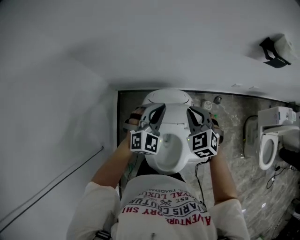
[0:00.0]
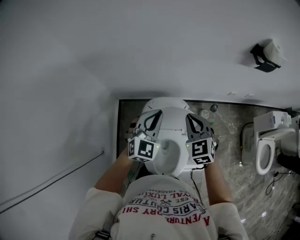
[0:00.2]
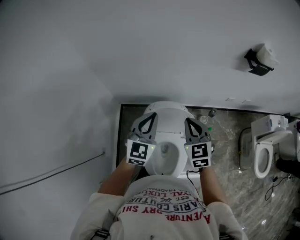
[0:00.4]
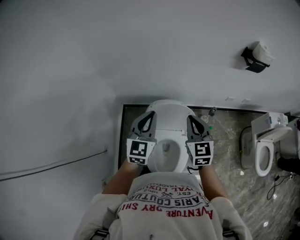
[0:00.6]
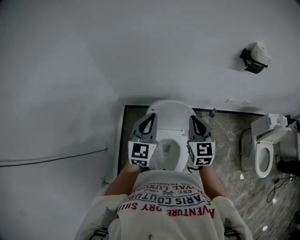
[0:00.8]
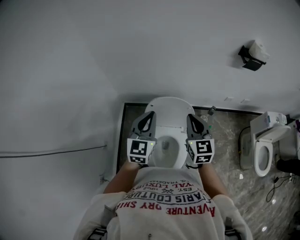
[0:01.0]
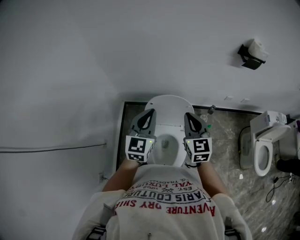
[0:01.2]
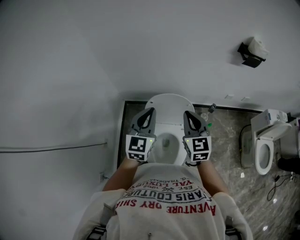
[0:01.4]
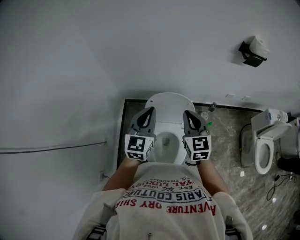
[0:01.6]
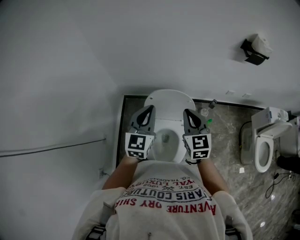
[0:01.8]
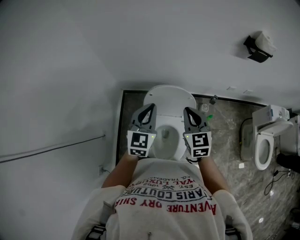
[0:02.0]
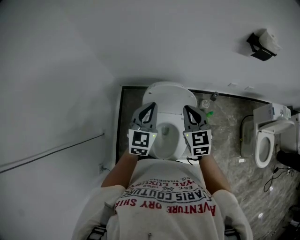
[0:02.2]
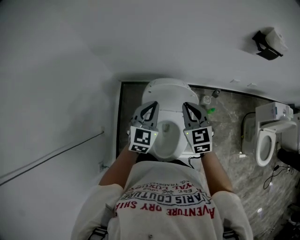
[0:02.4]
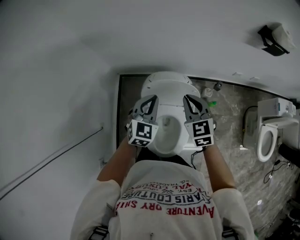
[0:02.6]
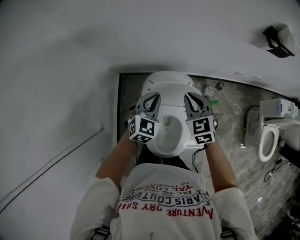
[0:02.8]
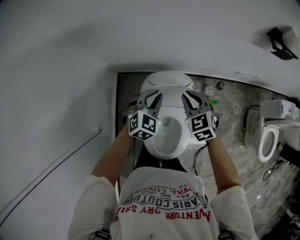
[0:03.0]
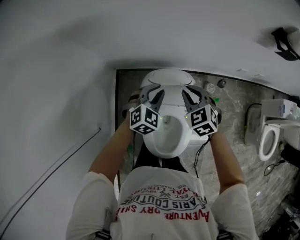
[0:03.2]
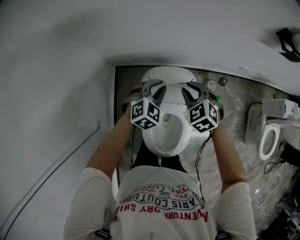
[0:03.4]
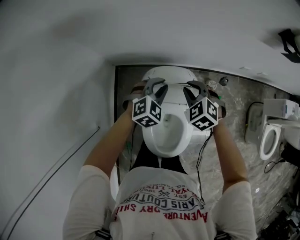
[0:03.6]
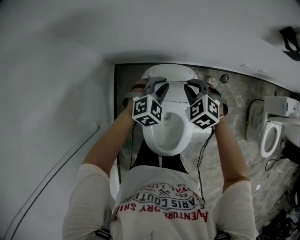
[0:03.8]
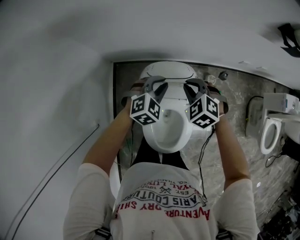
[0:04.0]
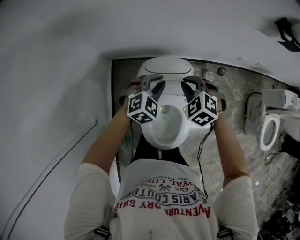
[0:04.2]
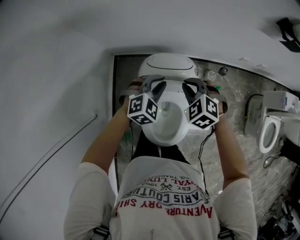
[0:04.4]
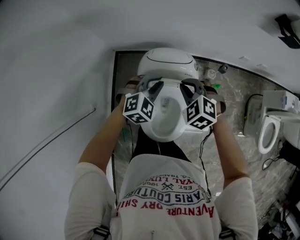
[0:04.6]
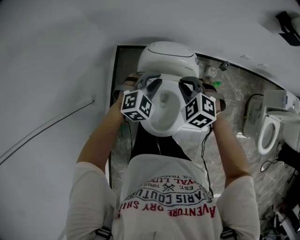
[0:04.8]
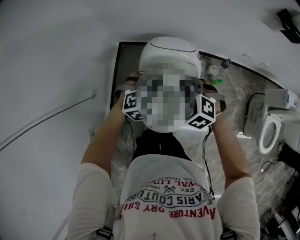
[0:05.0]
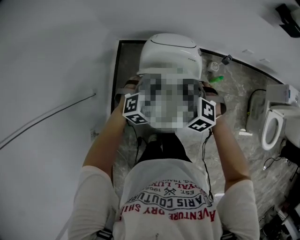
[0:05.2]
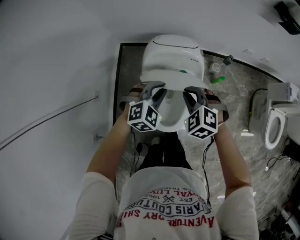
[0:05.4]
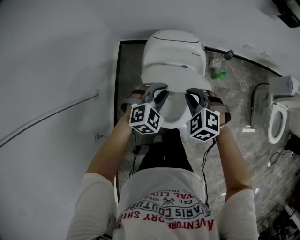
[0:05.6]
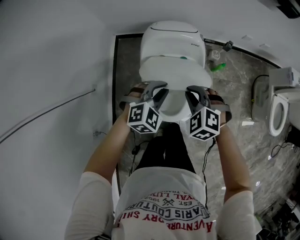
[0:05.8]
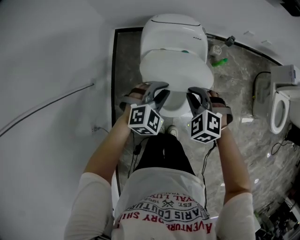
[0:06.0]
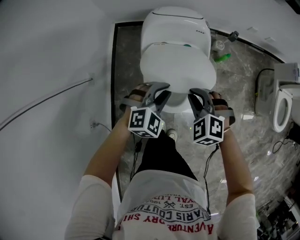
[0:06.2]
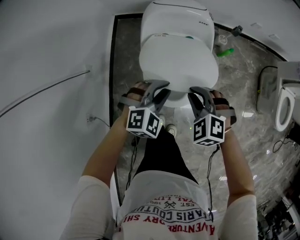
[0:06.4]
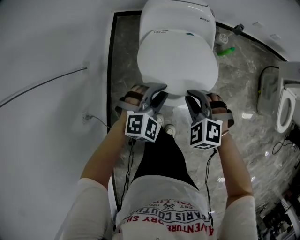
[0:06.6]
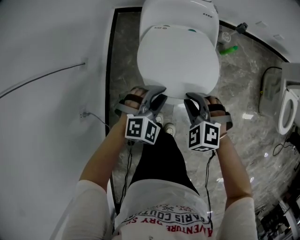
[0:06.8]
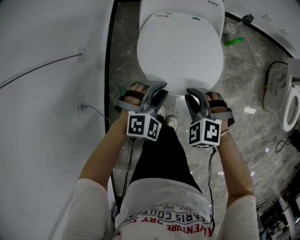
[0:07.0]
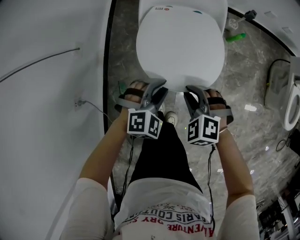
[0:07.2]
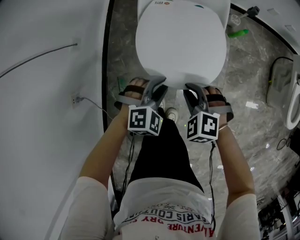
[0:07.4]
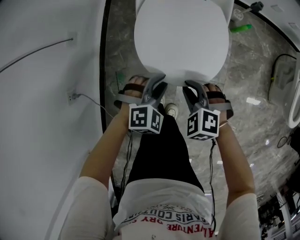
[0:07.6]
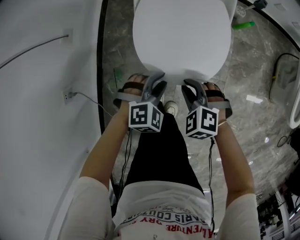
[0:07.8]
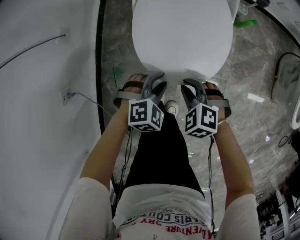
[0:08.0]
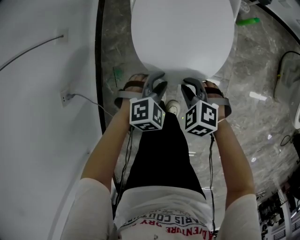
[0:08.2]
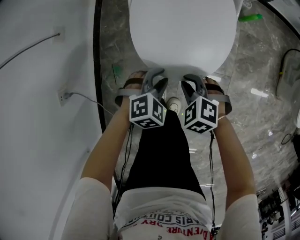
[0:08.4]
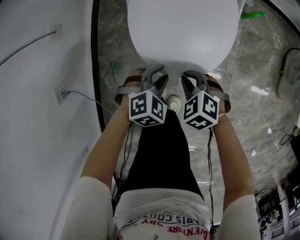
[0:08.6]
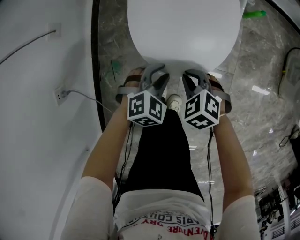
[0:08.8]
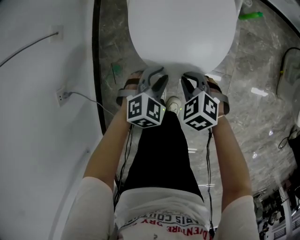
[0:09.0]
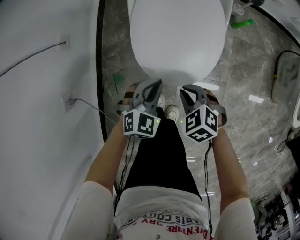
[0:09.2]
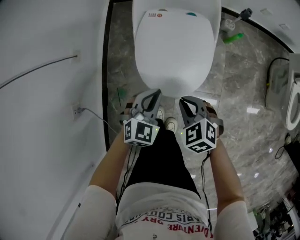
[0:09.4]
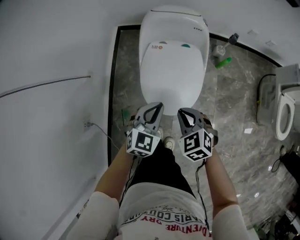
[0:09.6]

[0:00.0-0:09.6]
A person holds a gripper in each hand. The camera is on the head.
0:00.0 to 0:01.6: Both grippers travel together backward and upward, approximately 20 cm. The right gripper rotates about 30 degrees, while the left gripper swivels about 40 degrees.
0:01.6 to 0:03.2: The right gripper travels forward and downward by about 25 cm, and turns by some 40 degrees. Meanwhile the left gripper travels downward and forward by roughly 30 cm, and tilts its fingers approximately 30 degrees downward.
0:03.2 to 0:04.8: The grippers both shift backward by some 10 cm. The right gripper rotates about 20 degrees.
0:04.8 to 0:06.4: The two grippers go roughly 25 cm backward and downward.
0:06.4 to 0:08.0: Both grippers travel together downward and backward, roughly 25 cm.
0:08.0 to 0:09.6: Both grippers travel together upward, approximately 20 cm. The right gripper swivels approximately 30 degrees, while the left gripper swivels some 40 degrees, and closes up.

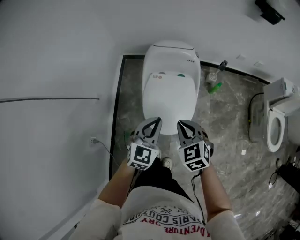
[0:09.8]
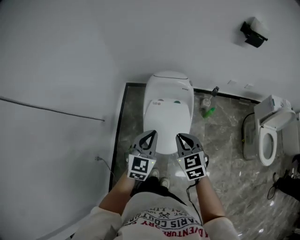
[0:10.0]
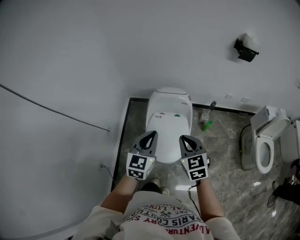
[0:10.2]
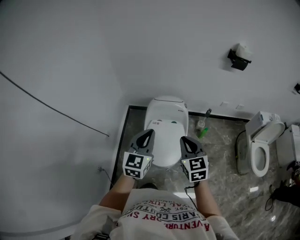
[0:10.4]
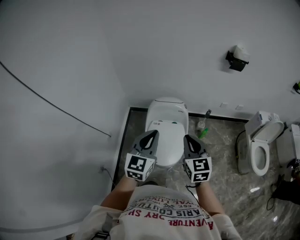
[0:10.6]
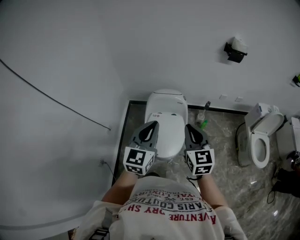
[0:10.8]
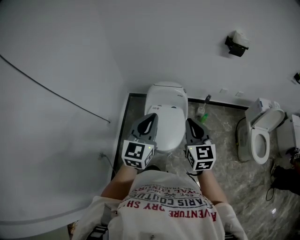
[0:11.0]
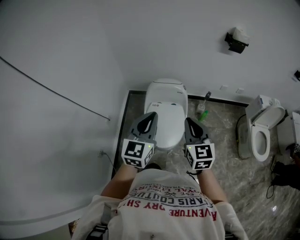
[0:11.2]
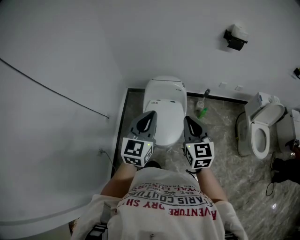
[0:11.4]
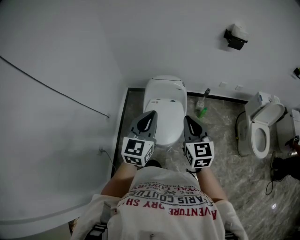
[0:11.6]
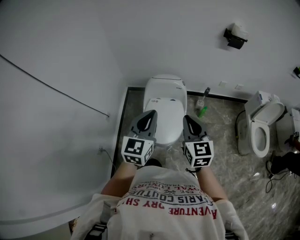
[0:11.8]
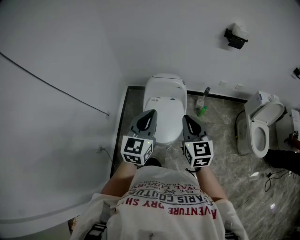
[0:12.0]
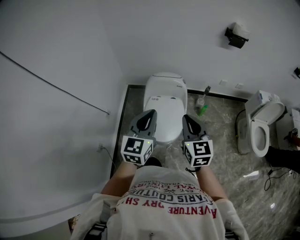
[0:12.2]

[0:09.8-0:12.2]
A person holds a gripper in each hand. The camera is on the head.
0:09.8 to 0:11.0: The grippers both shift upward by about 30 cm. The right gripper changes its angle by approximately 40 degrees. Meanwhile the left gripper swivels roughly 20 degrees.
0:11.0 to 0:12.2: The grippers stay close to where they were, moving slightly.

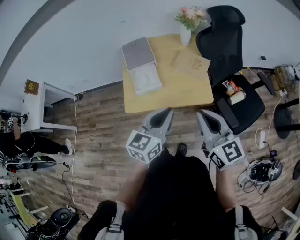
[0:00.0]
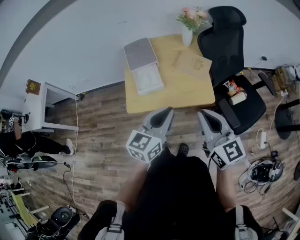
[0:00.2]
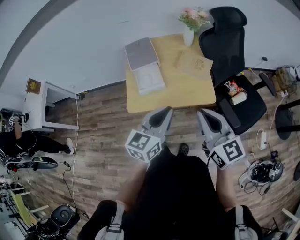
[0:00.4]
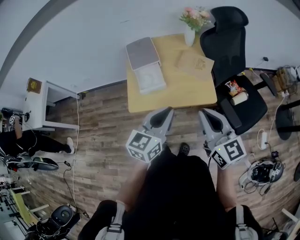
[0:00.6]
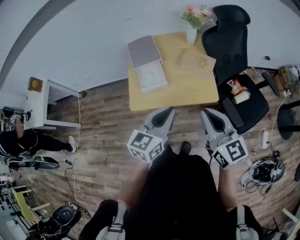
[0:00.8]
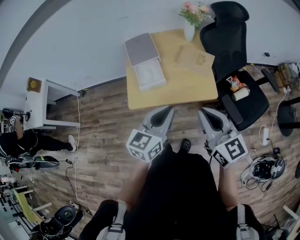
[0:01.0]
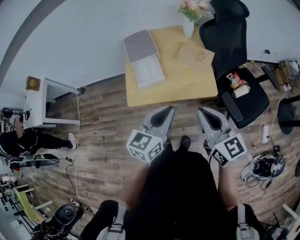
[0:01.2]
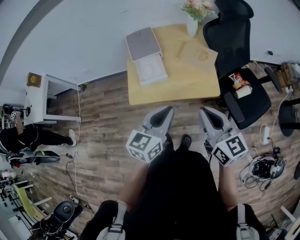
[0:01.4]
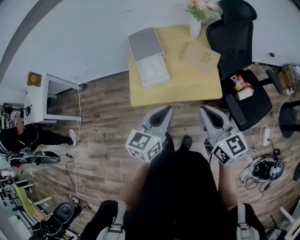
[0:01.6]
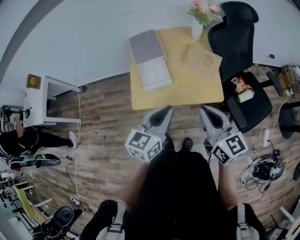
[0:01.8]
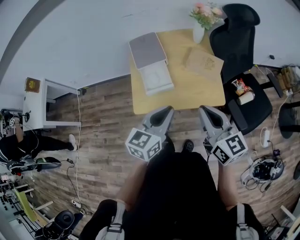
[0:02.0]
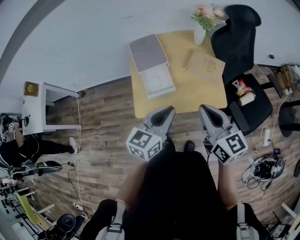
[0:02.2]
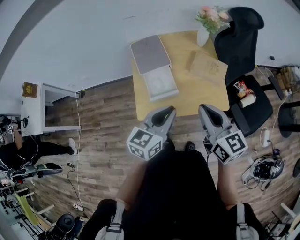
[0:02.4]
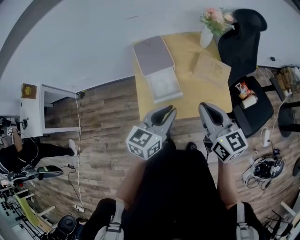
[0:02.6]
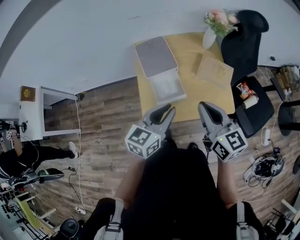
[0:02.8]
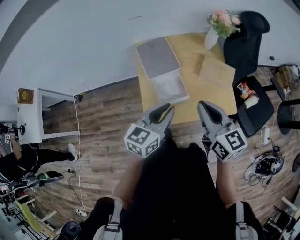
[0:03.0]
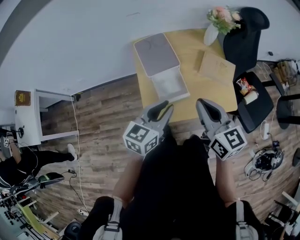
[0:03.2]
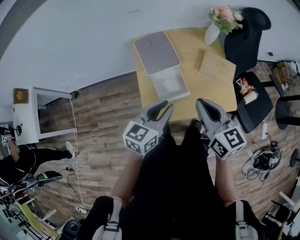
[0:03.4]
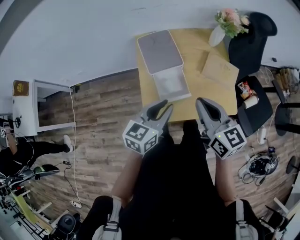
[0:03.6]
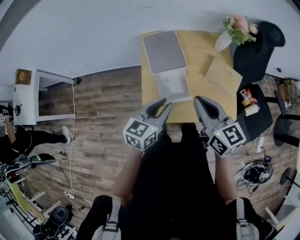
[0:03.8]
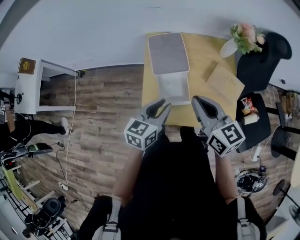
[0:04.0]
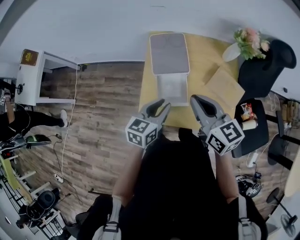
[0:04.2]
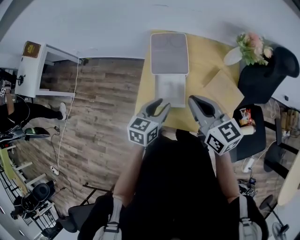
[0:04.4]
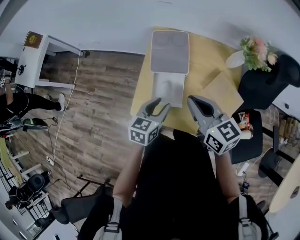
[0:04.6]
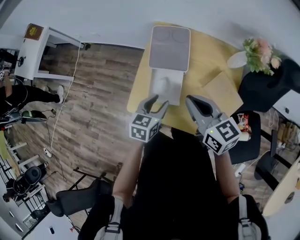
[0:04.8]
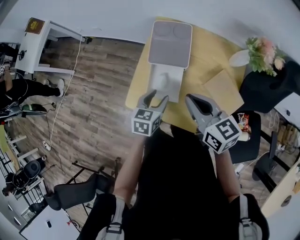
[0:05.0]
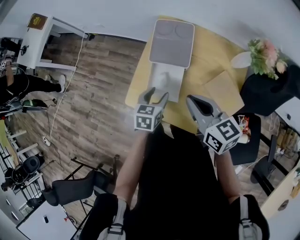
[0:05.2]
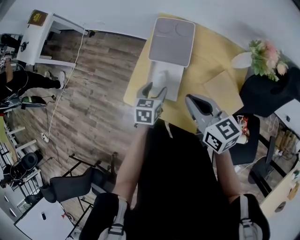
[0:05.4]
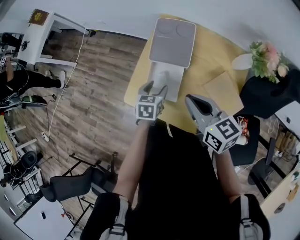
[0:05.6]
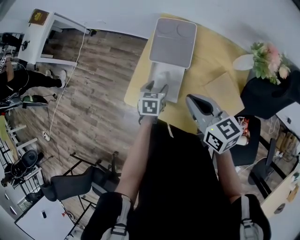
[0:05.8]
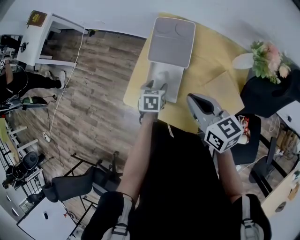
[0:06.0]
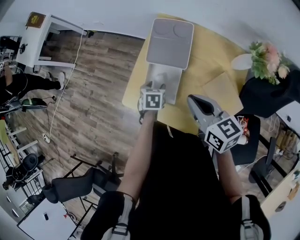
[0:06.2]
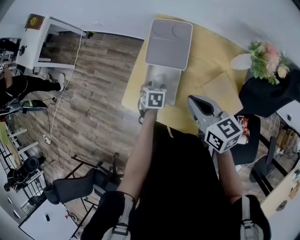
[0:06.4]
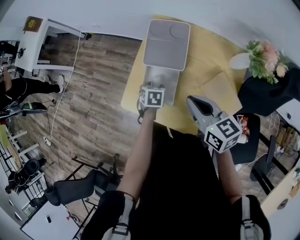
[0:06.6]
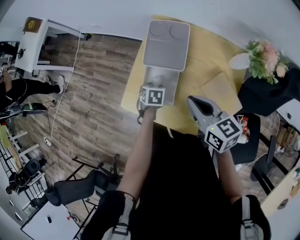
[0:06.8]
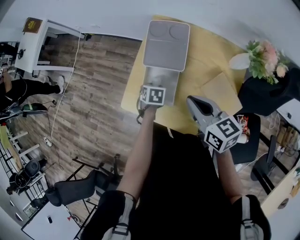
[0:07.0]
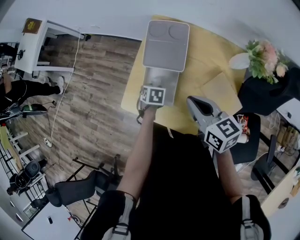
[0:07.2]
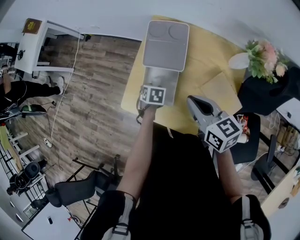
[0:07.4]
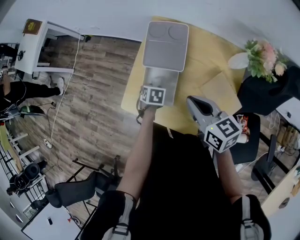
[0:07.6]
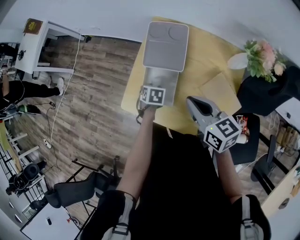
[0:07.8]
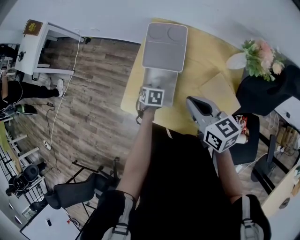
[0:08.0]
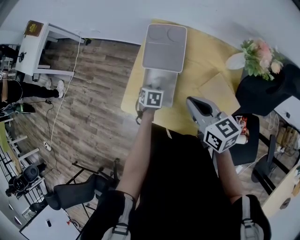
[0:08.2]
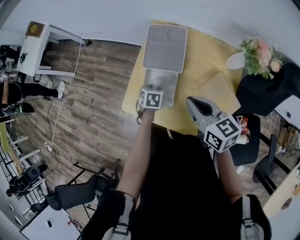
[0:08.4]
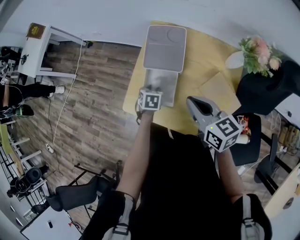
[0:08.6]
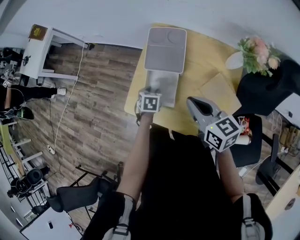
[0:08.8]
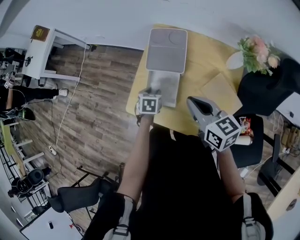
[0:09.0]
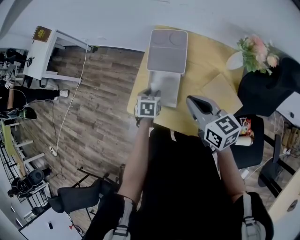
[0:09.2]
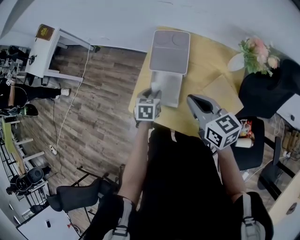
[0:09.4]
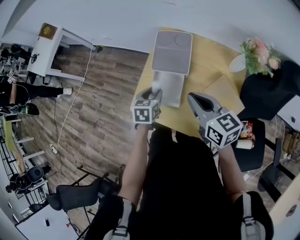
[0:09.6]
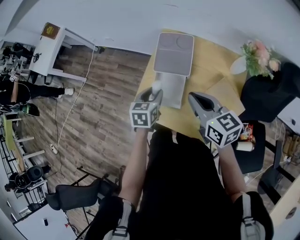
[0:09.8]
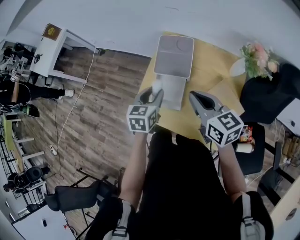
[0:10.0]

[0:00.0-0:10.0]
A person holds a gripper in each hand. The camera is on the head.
0:00.0 to 0:01.4: The grippers move only a little.
0:01.4 to 0:02.8: Both grippers travel together forward and to the left, approximately 20 cm.
0:02.8 to 0:04.2: The left gripper heads downward and forward, covering some 10 cm, and swivels approximately 20 degrees, while the right gripper moves forward, some 10 cm, and turns by approximately 20 degrees.
0:04.2 to 0:05.8: The left gripper shifts roughly 15 cm downward, changes its angle by approximately 40 degrees, and opens up, while the right gripper is displaced downward by roughly 5 cm, and rotates approximately 20 degrees.
0:05.8 to 0:07.2: The left gripper heads downward, covering roughly 5 cm, and turns by approximately 20 degrees.
0:07.2 to 0:08.6: The grippers make only small movements.
0:08.6 to 0:10.0: The left gripper goes about 20 cm upward, and swivels about 30 degrees.

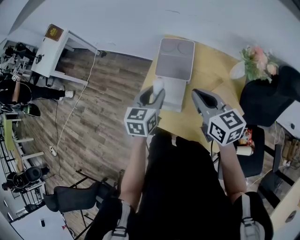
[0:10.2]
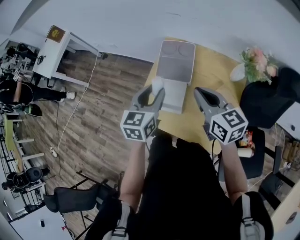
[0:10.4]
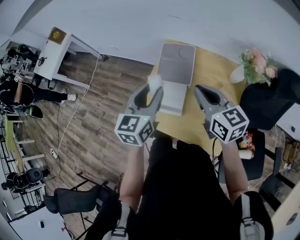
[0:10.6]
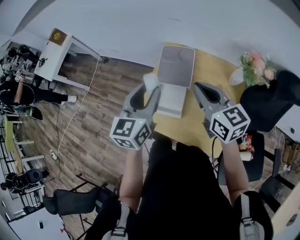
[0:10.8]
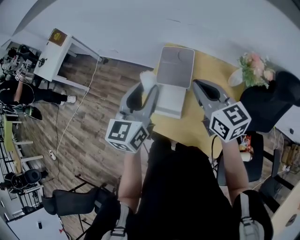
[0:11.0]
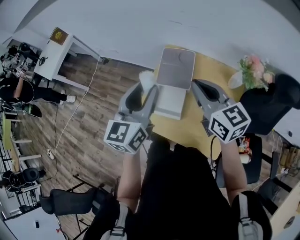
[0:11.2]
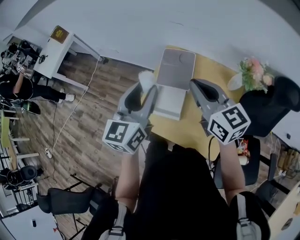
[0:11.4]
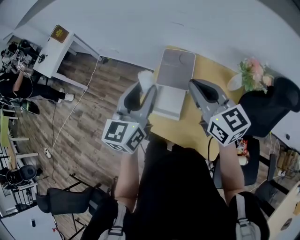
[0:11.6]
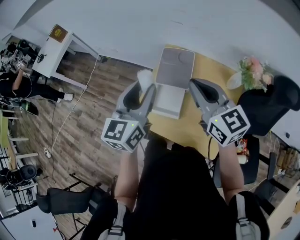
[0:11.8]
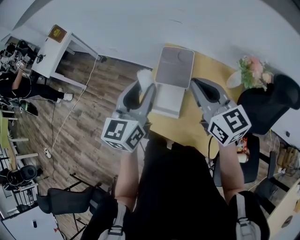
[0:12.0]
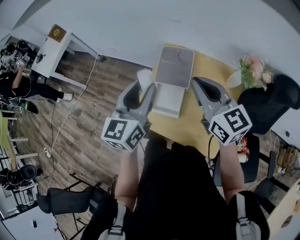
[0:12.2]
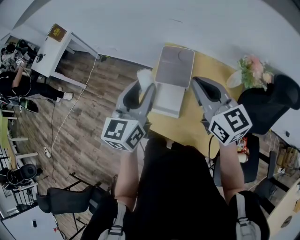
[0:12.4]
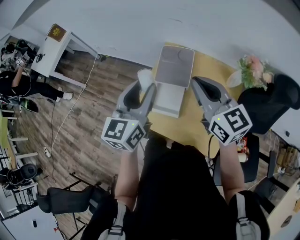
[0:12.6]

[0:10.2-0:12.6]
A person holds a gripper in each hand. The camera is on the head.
0:10.2 to 0:11.4: The right gripper moves upward, approximately 10 cm. The left gripper heads upward, covering roughly 15 cm, and rotates approximately 20 degrees.
0:11.4 to 0:12.6: Both grippers stay about where they are.
